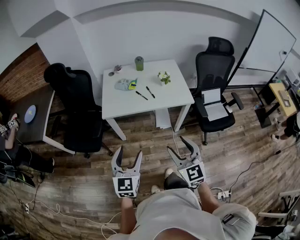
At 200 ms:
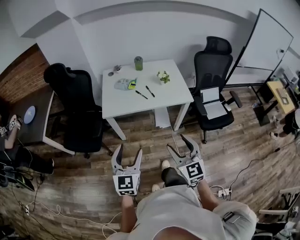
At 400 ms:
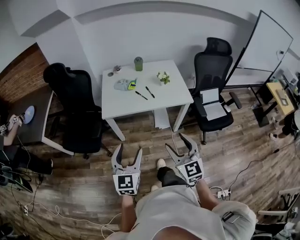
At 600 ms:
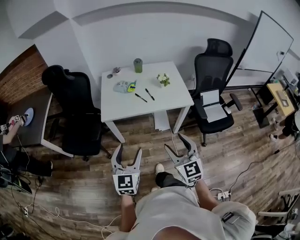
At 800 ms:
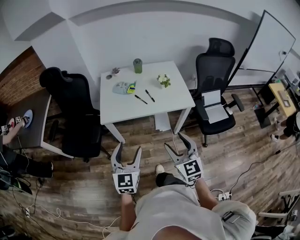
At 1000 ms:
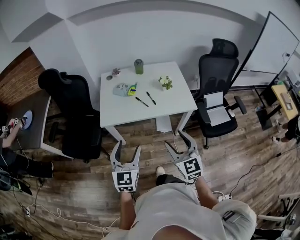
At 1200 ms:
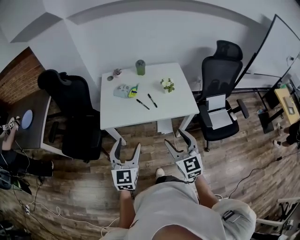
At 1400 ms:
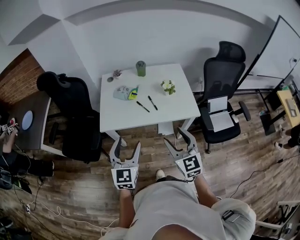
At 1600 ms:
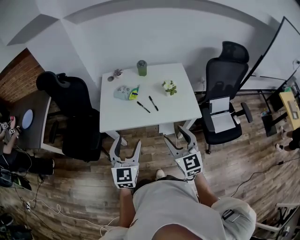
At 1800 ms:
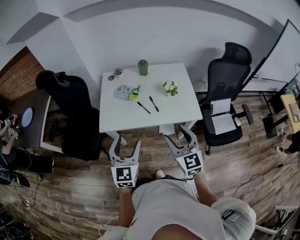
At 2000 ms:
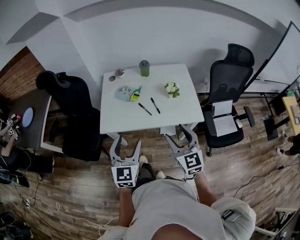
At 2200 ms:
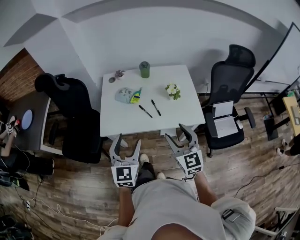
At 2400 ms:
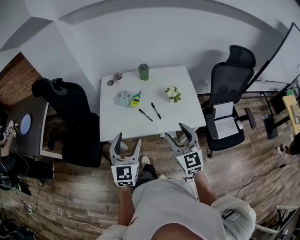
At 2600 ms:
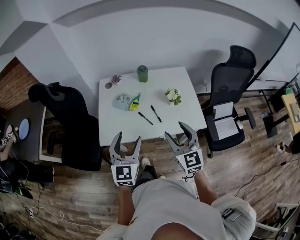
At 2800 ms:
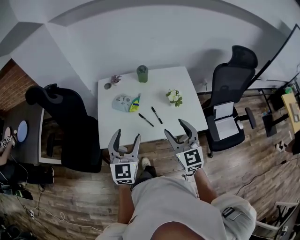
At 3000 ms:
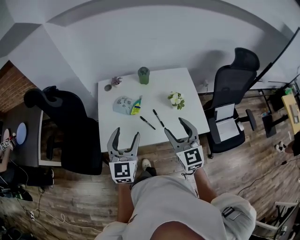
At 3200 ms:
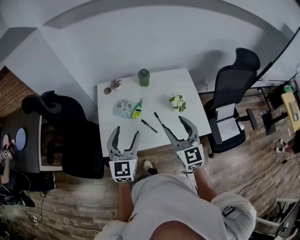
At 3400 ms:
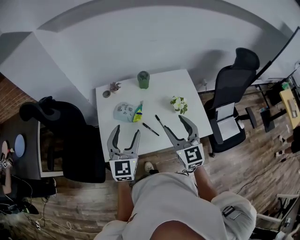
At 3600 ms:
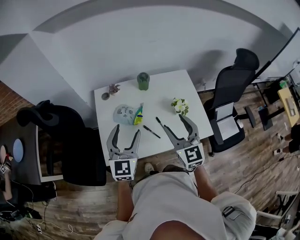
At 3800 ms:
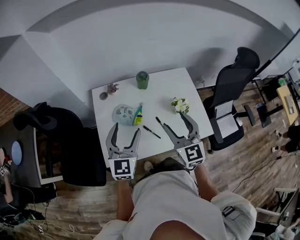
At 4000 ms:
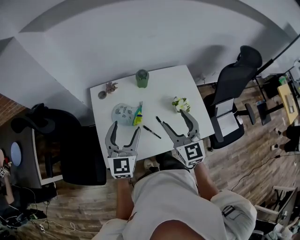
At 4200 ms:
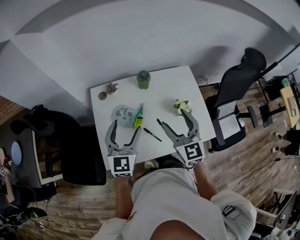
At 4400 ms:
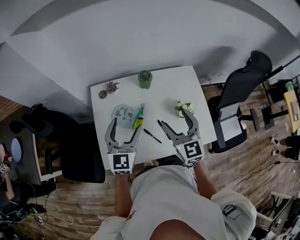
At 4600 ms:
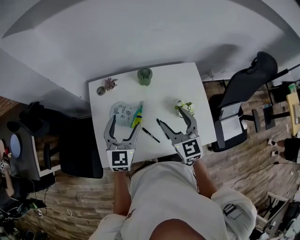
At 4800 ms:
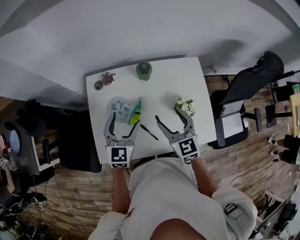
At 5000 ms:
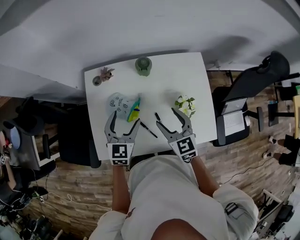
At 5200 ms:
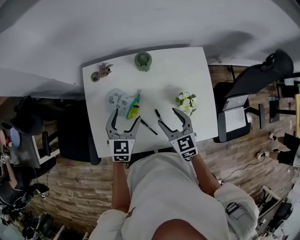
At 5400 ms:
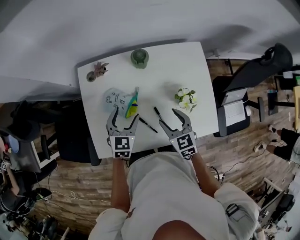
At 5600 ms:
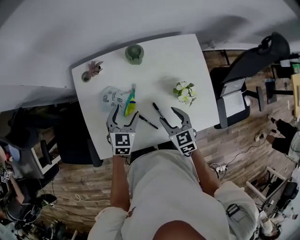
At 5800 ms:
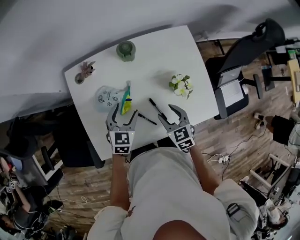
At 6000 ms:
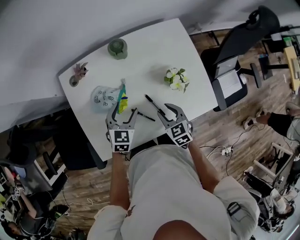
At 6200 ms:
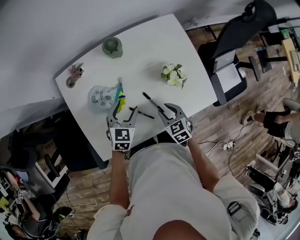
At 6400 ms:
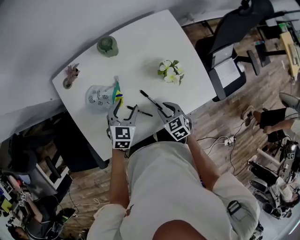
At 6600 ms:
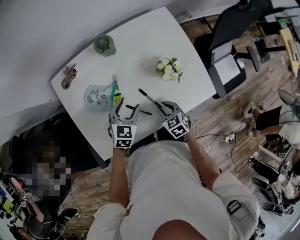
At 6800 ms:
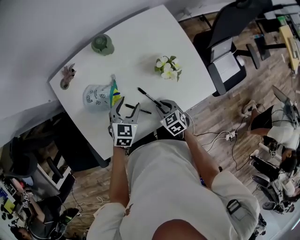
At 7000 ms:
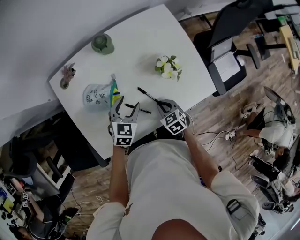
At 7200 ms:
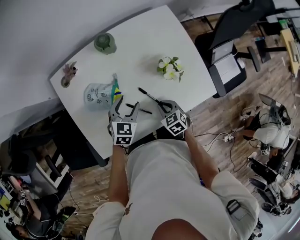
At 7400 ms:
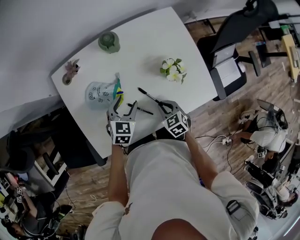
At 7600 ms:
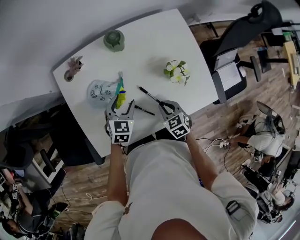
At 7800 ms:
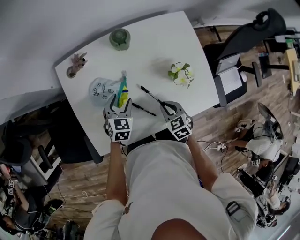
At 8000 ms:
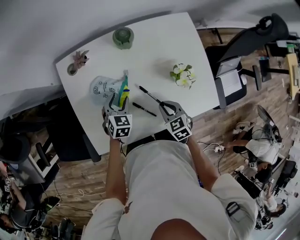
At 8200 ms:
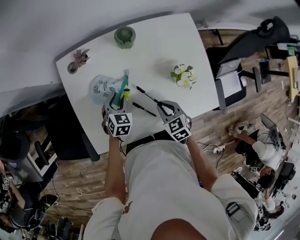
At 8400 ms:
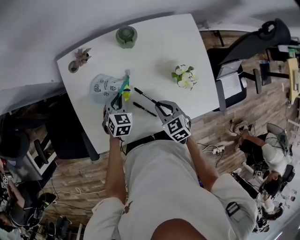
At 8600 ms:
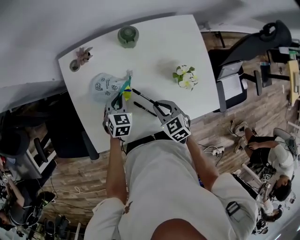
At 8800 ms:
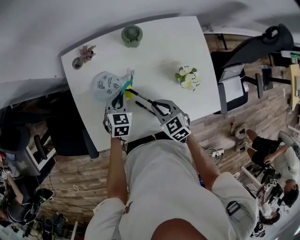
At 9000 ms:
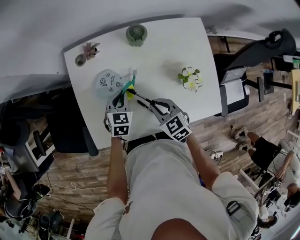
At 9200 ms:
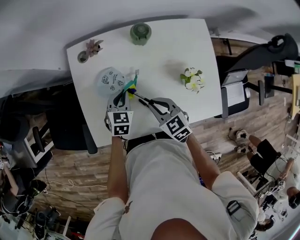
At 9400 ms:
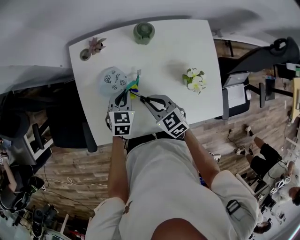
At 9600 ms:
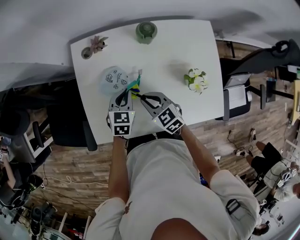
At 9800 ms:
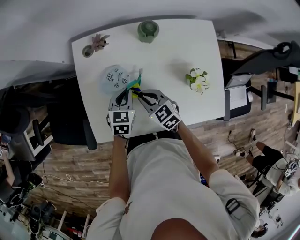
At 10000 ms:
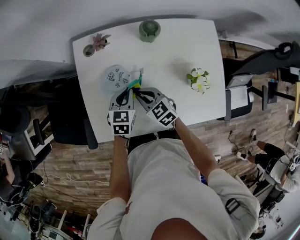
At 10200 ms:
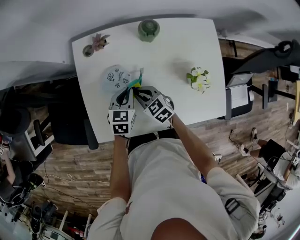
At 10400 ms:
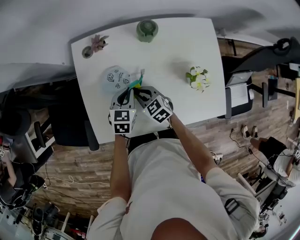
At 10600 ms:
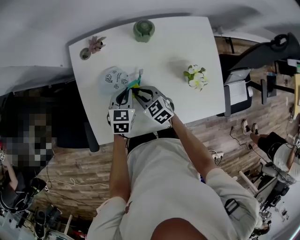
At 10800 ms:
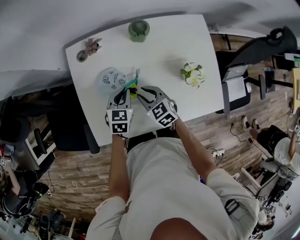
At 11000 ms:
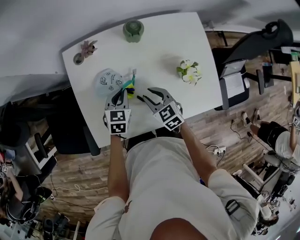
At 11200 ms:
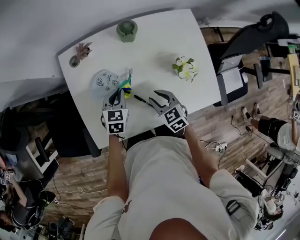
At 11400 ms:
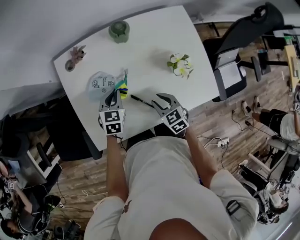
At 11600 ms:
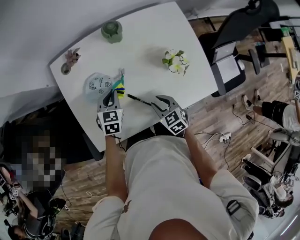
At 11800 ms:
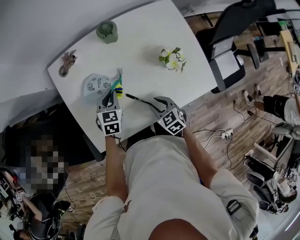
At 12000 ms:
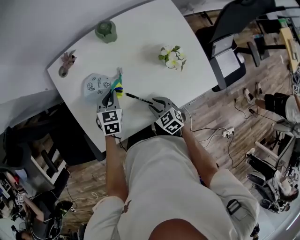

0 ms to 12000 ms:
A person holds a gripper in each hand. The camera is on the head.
0 ms to 1600 ms: The grippers both shift forward by some 20 cm.
1600 ms to 3000 ms: Both grippers move forward, some 20 cm.
3000 ms to 4400 ms: Both grippers move forward, roughly 20 cm.
4400 ms to 6000 ms: The grippers both shift downward by some 25 cm. The right gripper angles its fingers downward, by roughly 30 degrees, and closes up. The left gripper swivels about 30 degrees.
6000 ms to 7600 ms: The right gripper heads downward, covering some 5 cm, and closes.
7600 ms to 9000 ms: The right gripper heads to the left, upward and forward, covering about 10 cm, and changes its angle by approximately 20 degrees, while the left gripper goes about 5 cm to the left, and closes up.
9000 ms to 10400 ms: The right gripper heads to the left, downward and forward, covering some 10 cm.
10400 ms to 12000 ms: The right gripper moves backward and to the right, approximately 15 cm, and swivels about 20 degrees.

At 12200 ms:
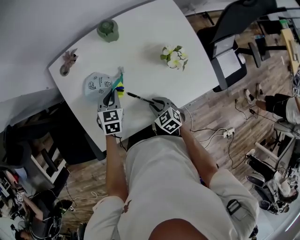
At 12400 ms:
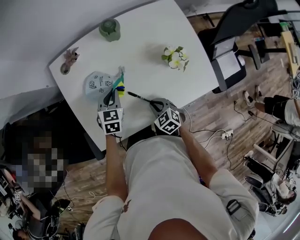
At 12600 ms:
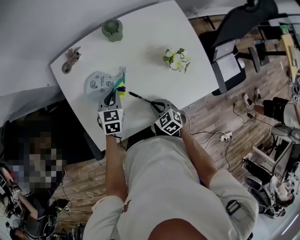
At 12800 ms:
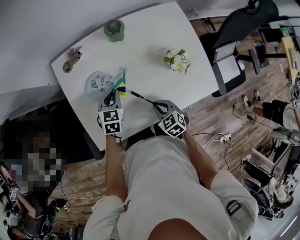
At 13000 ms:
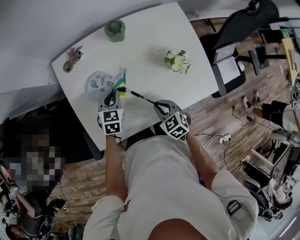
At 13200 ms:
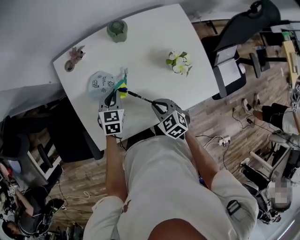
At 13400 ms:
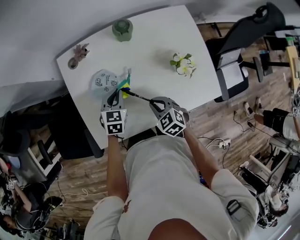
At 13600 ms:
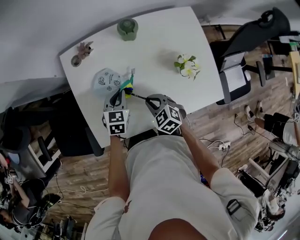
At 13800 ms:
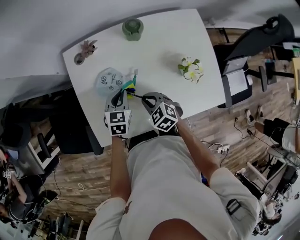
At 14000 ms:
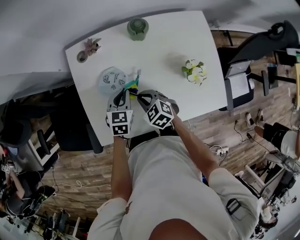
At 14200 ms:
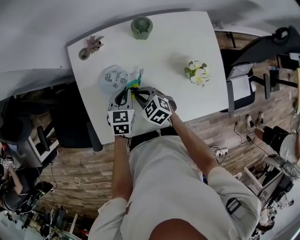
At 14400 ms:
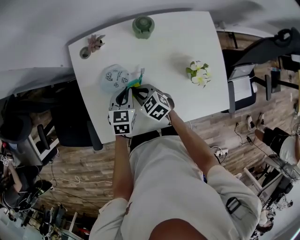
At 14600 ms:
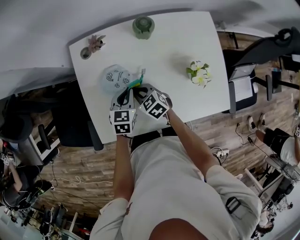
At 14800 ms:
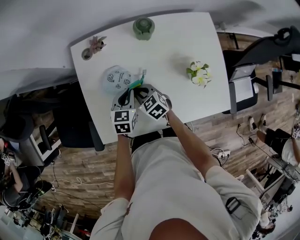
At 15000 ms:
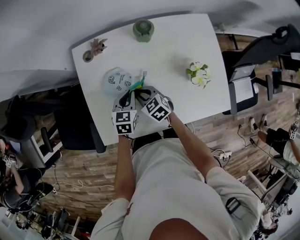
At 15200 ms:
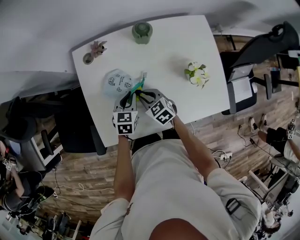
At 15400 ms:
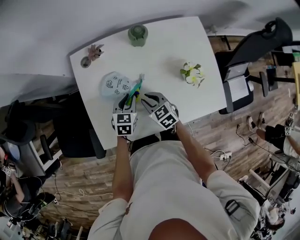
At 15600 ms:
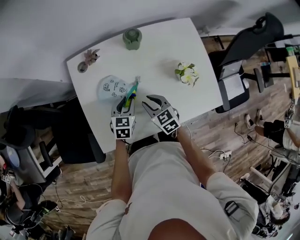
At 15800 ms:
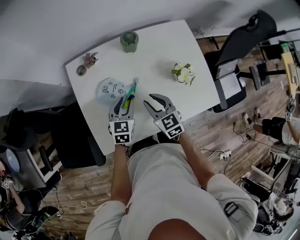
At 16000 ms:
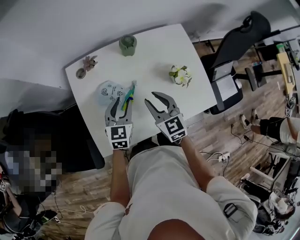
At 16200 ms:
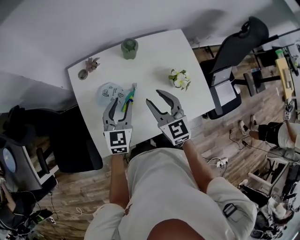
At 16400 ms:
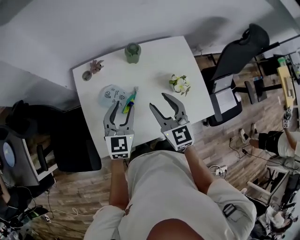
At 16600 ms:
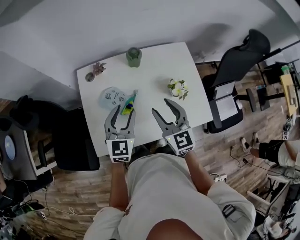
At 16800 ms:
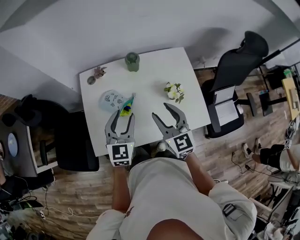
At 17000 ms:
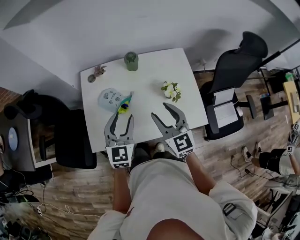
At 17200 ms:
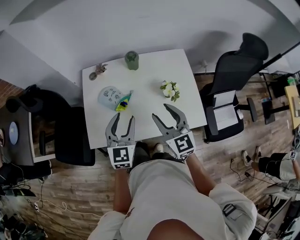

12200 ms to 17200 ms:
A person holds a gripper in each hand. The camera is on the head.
12200 ms to 13800 ms: The right gripper moves forward, to the left and upward, approximately 10 cm.
13800 ms to 15600 ms: The right gripper changes its angle by approximately 20 degrees.
15600 ms to 17200 ms: The left gripper shifts some 25 cm upward and backward, and rotates some 30 degrees. Meanwhile the right gripper heads upward, to the right and backward, covering about 30 cm, and swivels approximately 30 degrees.

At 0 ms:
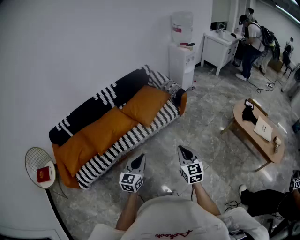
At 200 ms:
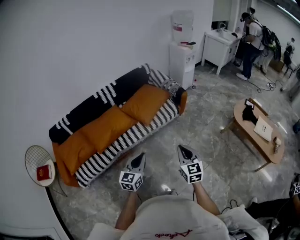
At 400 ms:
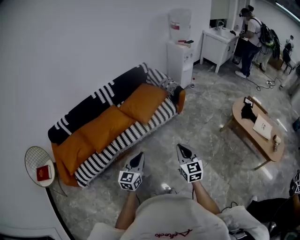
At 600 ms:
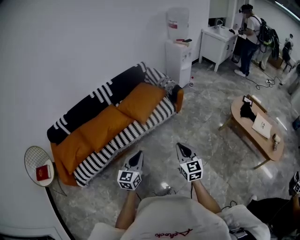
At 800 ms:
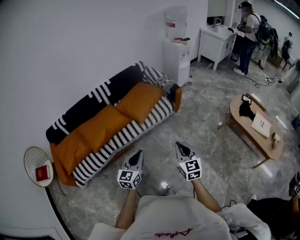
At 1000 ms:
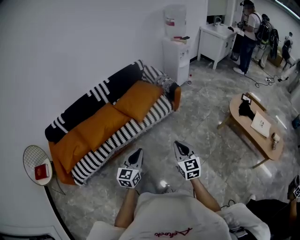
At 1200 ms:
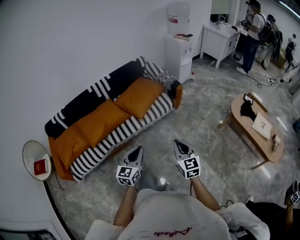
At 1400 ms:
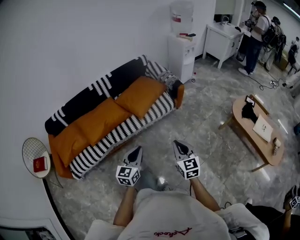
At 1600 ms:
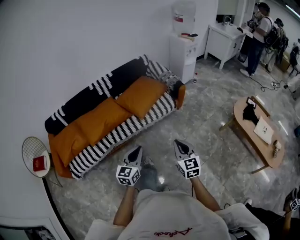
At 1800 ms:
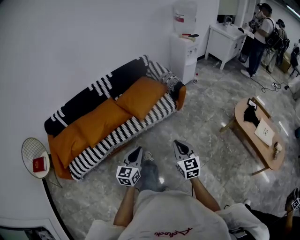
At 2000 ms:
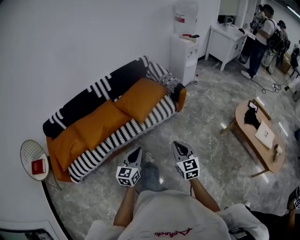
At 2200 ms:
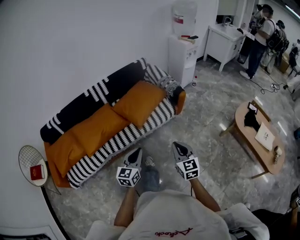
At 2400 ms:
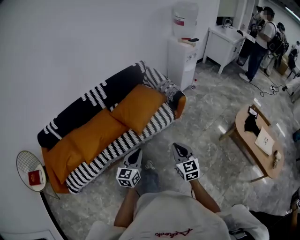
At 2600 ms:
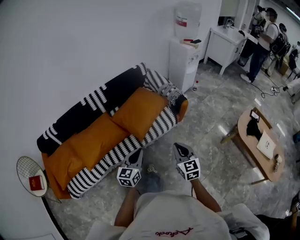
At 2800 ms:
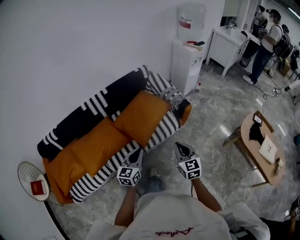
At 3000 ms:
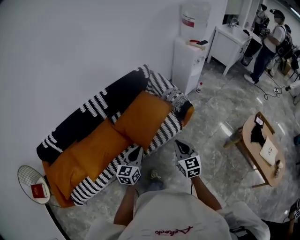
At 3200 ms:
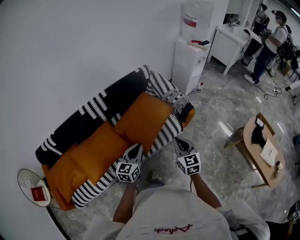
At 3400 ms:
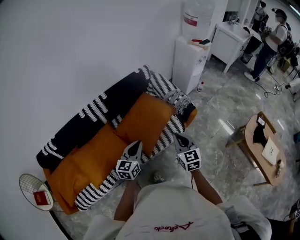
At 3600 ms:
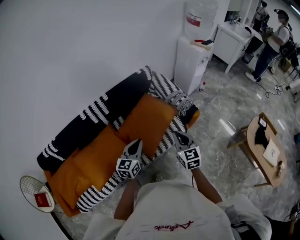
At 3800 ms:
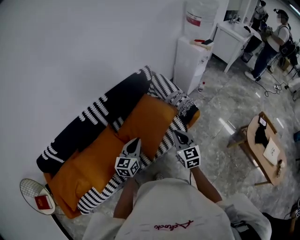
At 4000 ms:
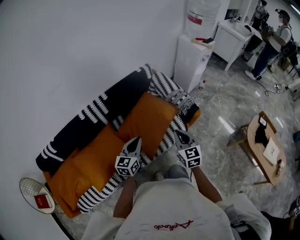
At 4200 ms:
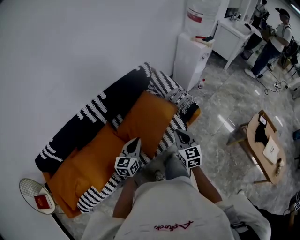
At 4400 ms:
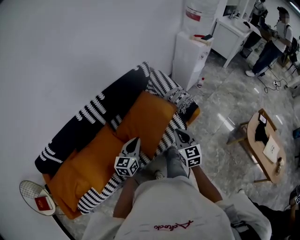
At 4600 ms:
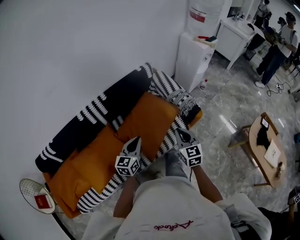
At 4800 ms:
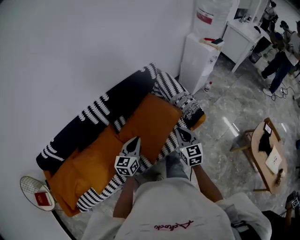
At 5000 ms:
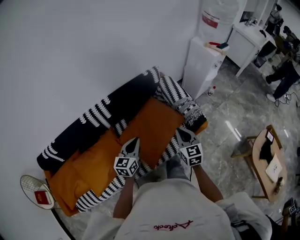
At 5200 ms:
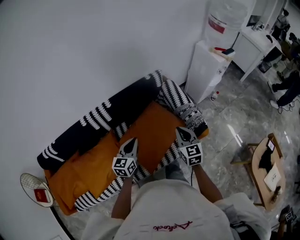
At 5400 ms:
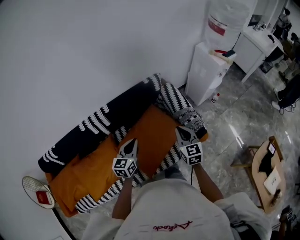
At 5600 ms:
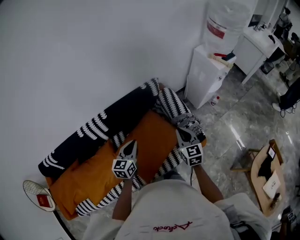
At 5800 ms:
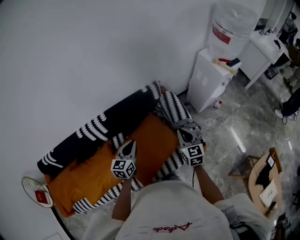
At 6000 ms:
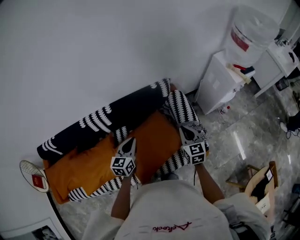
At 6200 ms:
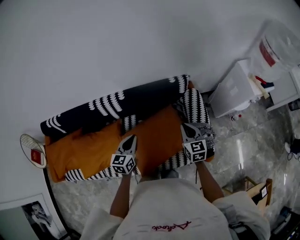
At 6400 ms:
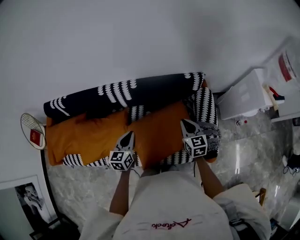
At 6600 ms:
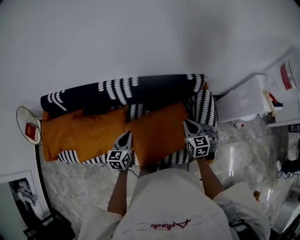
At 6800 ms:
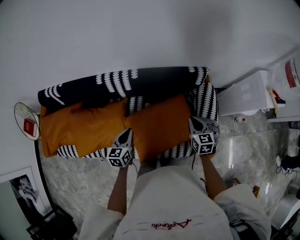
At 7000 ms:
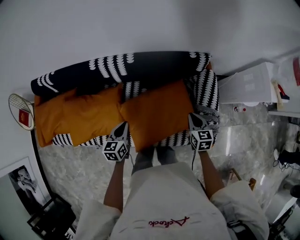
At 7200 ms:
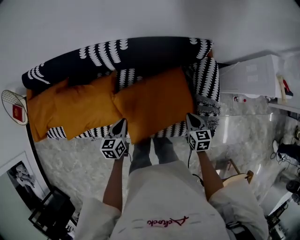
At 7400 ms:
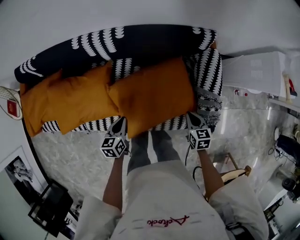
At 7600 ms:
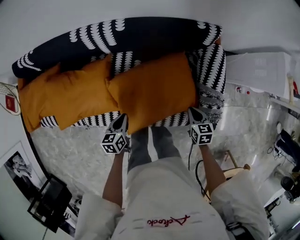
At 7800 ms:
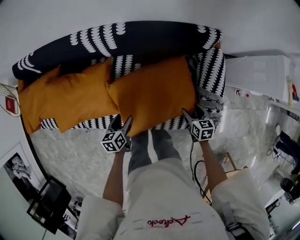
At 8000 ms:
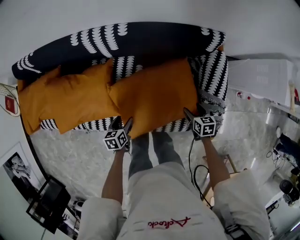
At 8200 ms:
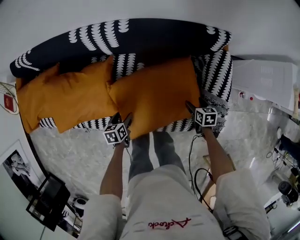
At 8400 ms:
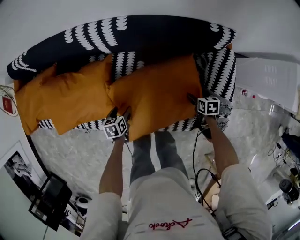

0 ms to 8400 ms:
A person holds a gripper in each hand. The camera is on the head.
0 ms to 1400 ms: Both grippers travel together to the right, about 5 cm.
1400 ms to 2800 ms: The two grippers go roughly 30 cm forward.
2800 ms to 4200 ms: The two grippers go some 20 cm forward and to the left.
4200 ms to 5600 ms: The two grippers go approximately 25 cm forward.
5600 ms to 7000 ms: The right gripper heads downward, covering approximately 15 cm, and rotates roughly 30 degrees, while the left gripper shifts by about 20 cm, and rotates approximately 40 degrees.
7000 ms to 8400 ms: The two grippers go some 25 cm downward. The left gripper turns by some 30 degrees, and opens; the right gripper changes its angle by some 30 degrees, and opens.
